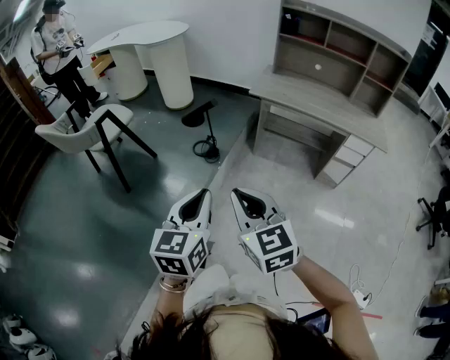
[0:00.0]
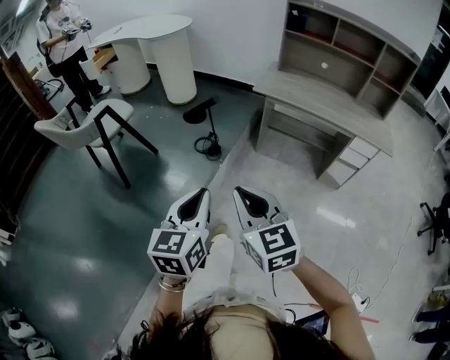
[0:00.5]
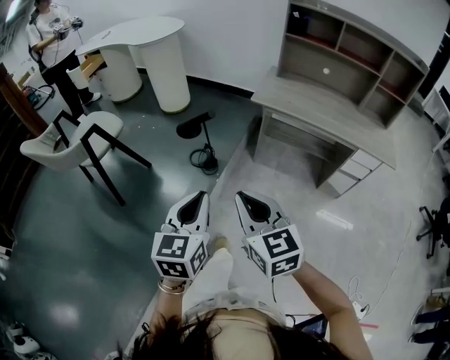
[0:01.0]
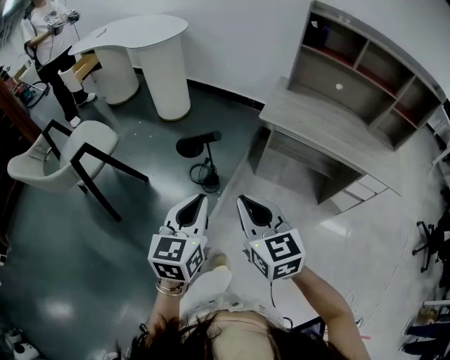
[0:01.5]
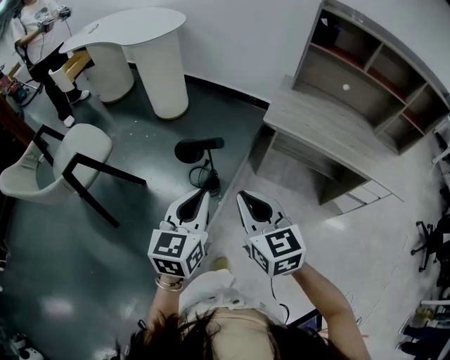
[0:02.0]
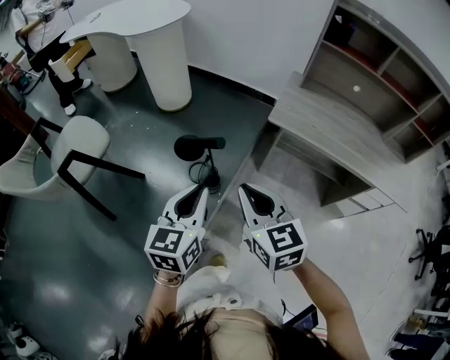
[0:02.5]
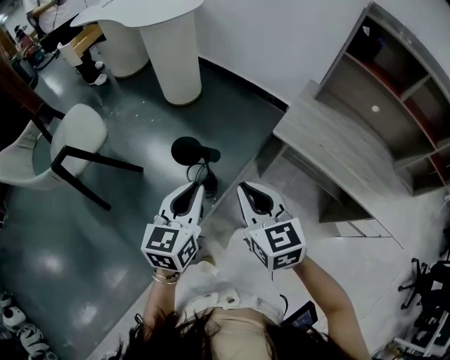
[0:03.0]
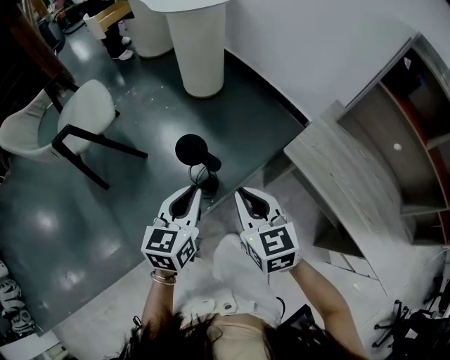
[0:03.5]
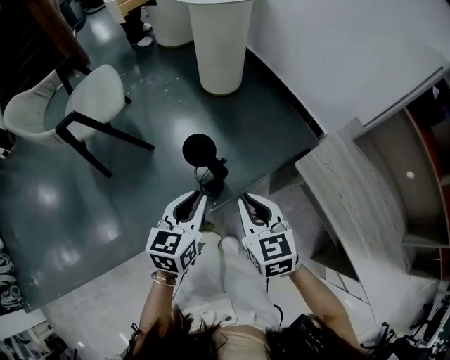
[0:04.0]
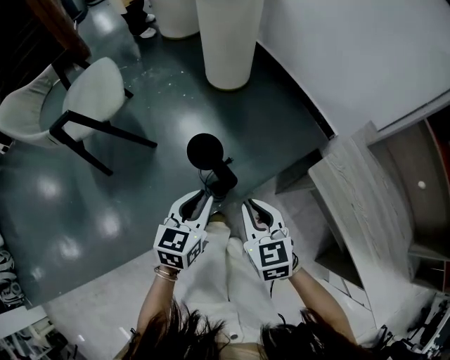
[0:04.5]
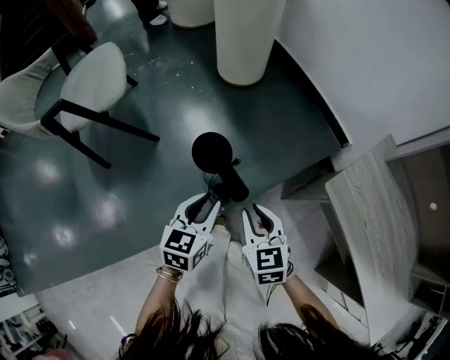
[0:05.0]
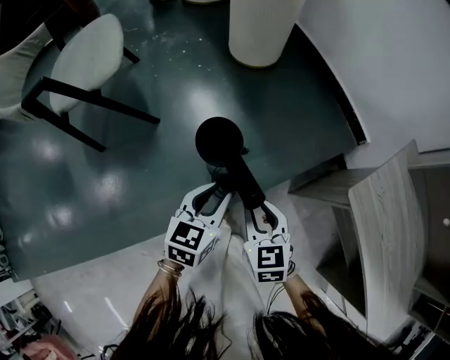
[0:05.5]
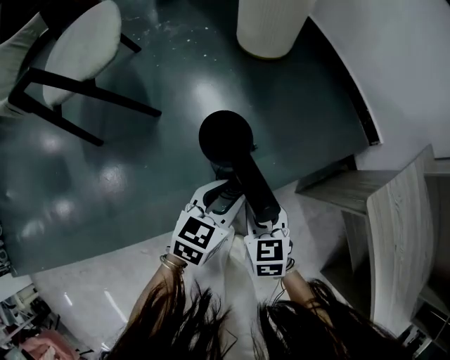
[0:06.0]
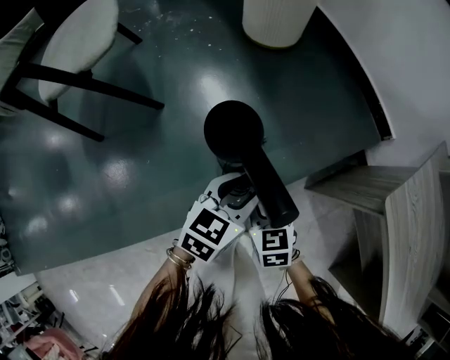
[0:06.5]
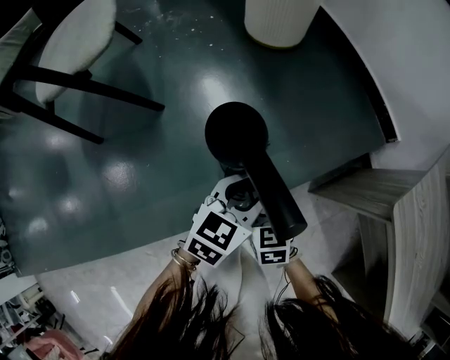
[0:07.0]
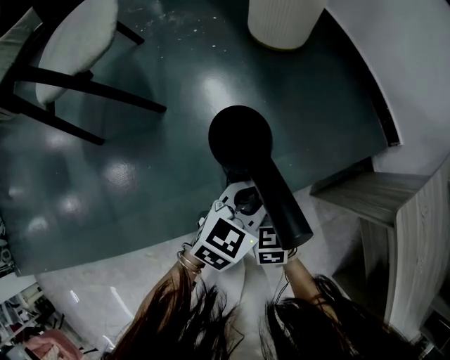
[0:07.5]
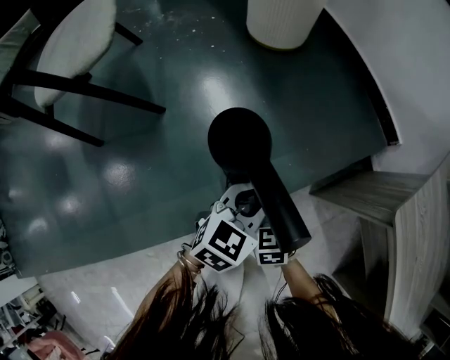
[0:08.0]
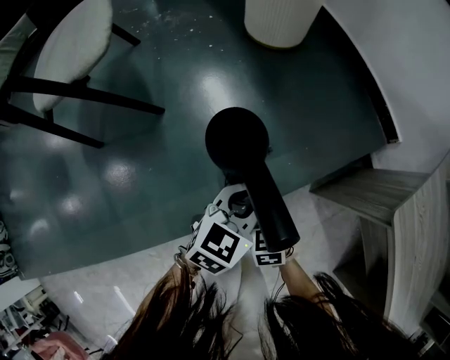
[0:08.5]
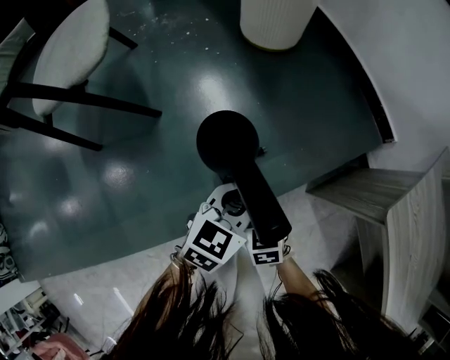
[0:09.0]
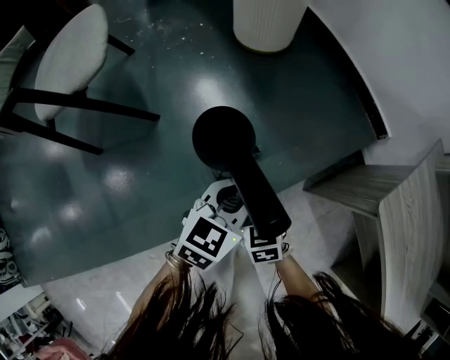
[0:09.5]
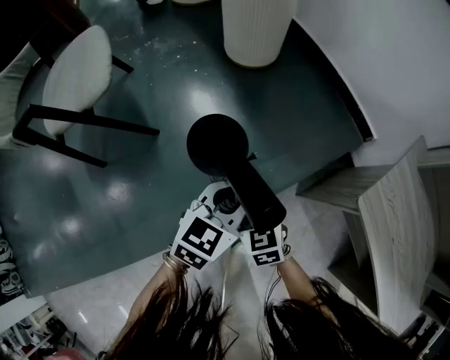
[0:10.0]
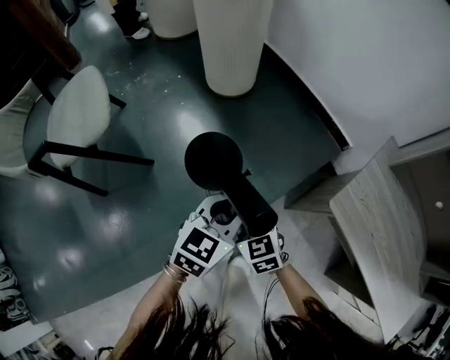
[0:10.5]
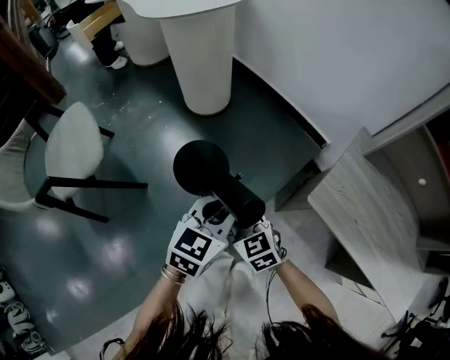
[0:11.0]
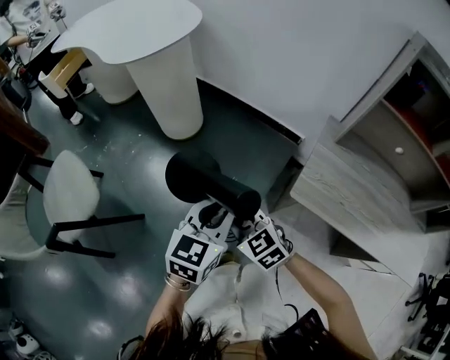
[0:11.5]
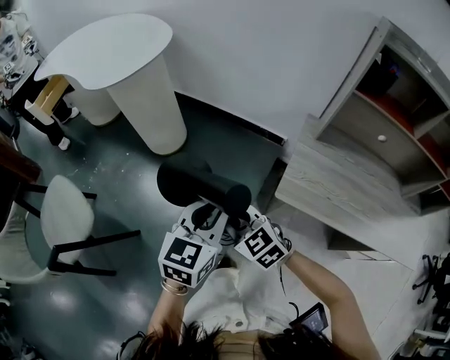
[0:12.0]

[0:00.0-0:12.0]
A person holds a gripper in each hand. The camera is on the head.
0.0 to 2.0 s: The grippers both shift forward by some 35 cm.
2.0 to 4.0 s: The left gripper shifts by approximately 20 cm, and turns by approximately 30 degrees, while the right gripper moves approximately 25 cm, and turns by roughly 30 degrees.
4.0 to 6.0 s: The left gripper travels downward and forward by roughly 25 cm, and opens its fingers, while the right gripper goes about 30 cm downward.
6.0 to 8.0 s: The right gripper travels downward by roughly 5 cm.
8.0 to 10.0 s: The grippers both shift upward by about 10 cm.
10.0 to 12.0 s: The two grippers go about 25 cm upward. The left gripper rotates roughly 20 degrees.

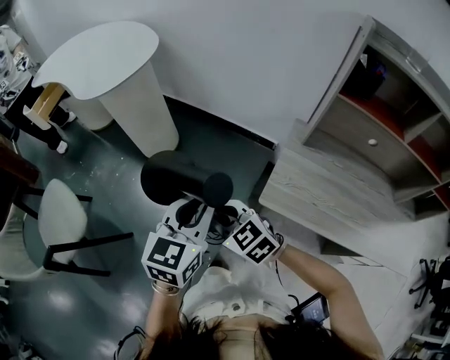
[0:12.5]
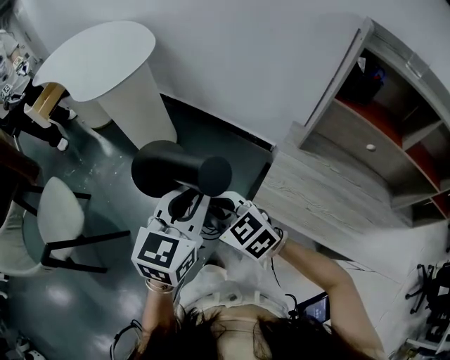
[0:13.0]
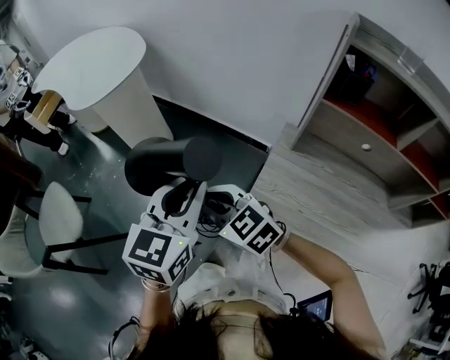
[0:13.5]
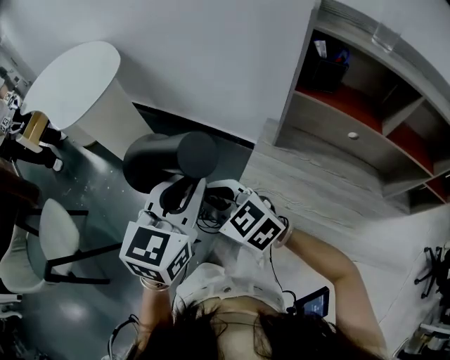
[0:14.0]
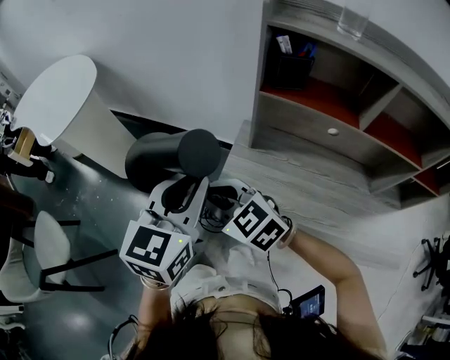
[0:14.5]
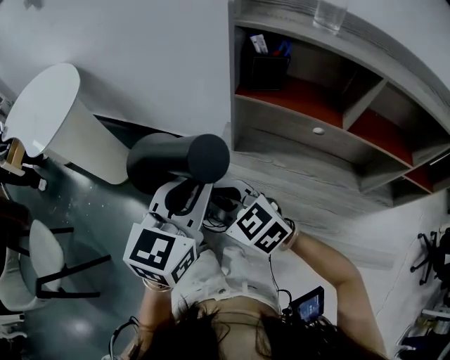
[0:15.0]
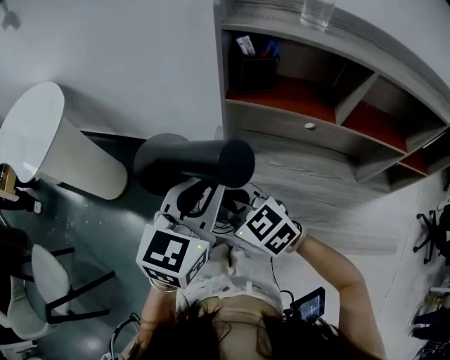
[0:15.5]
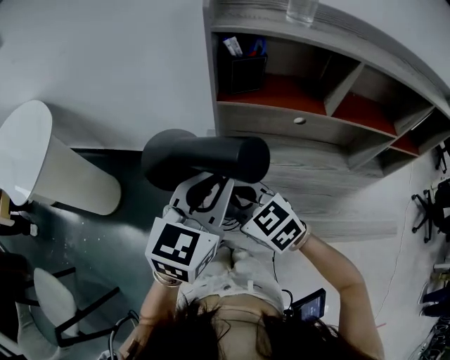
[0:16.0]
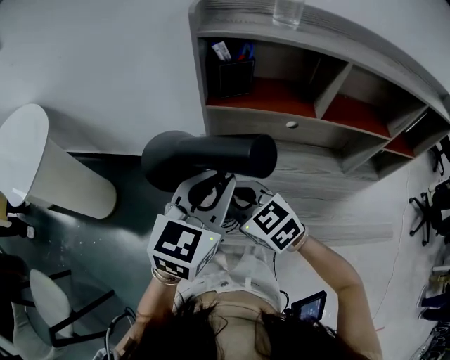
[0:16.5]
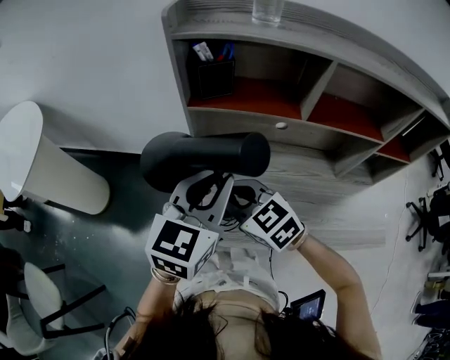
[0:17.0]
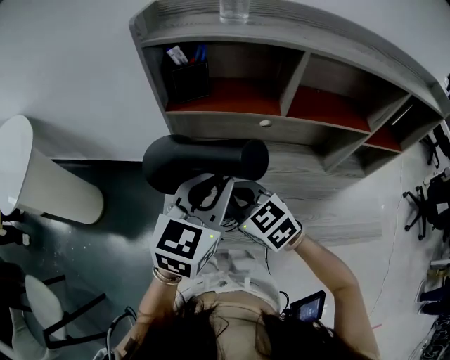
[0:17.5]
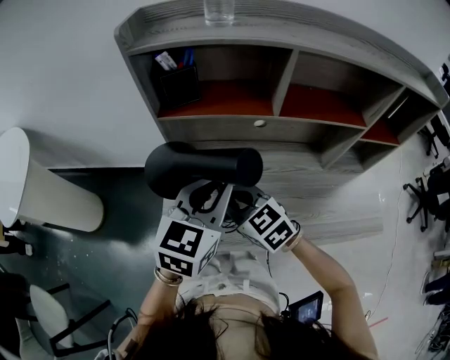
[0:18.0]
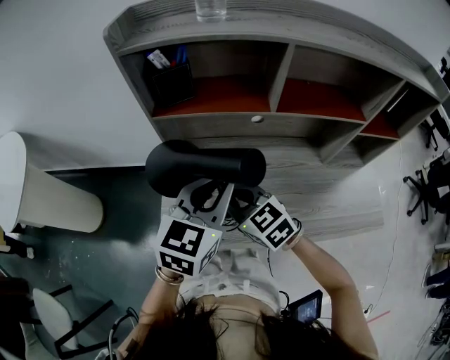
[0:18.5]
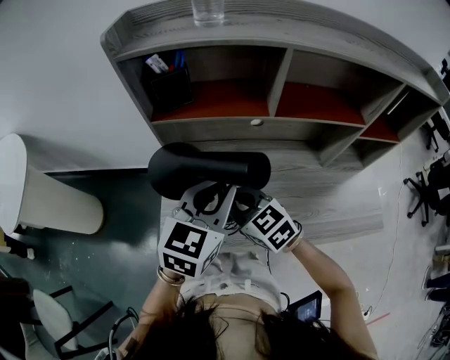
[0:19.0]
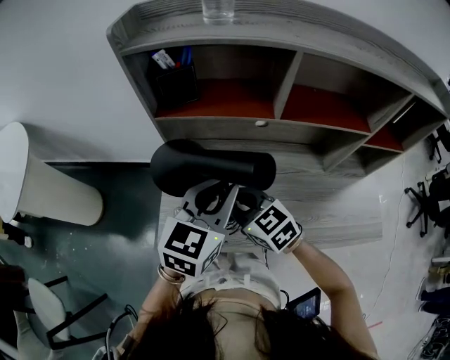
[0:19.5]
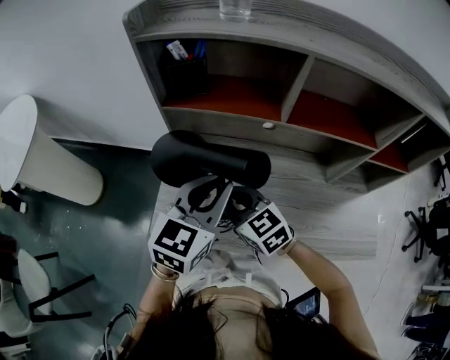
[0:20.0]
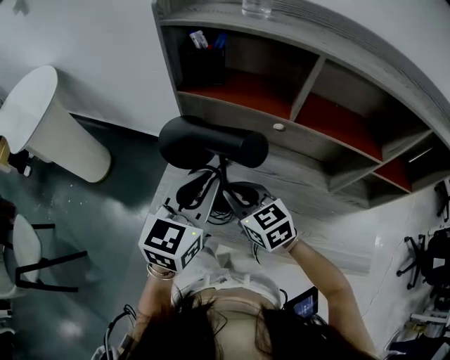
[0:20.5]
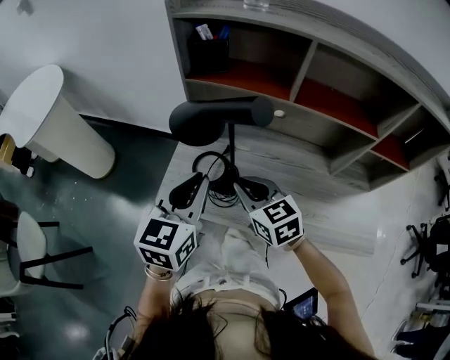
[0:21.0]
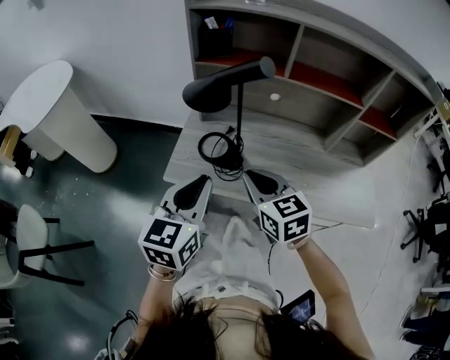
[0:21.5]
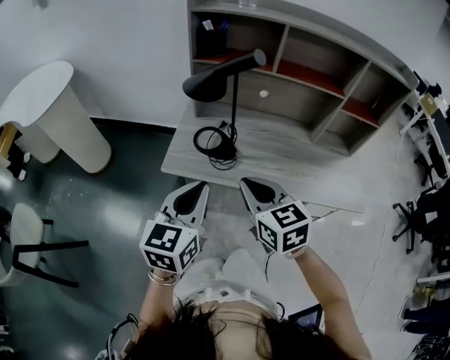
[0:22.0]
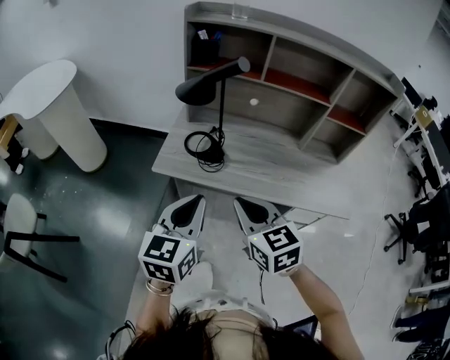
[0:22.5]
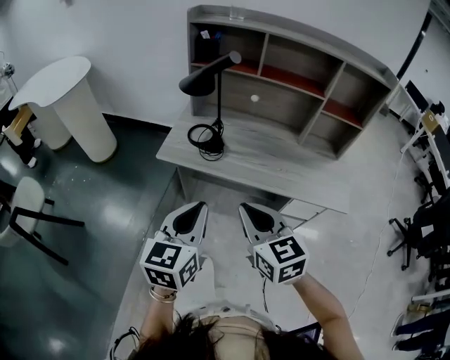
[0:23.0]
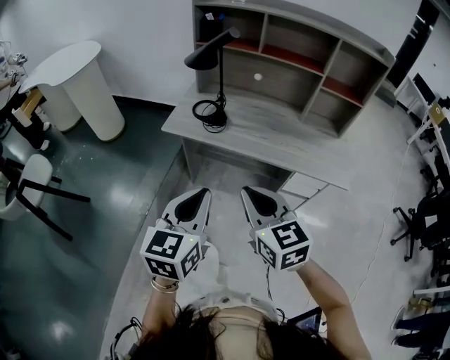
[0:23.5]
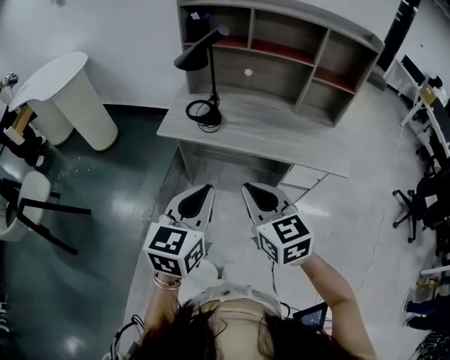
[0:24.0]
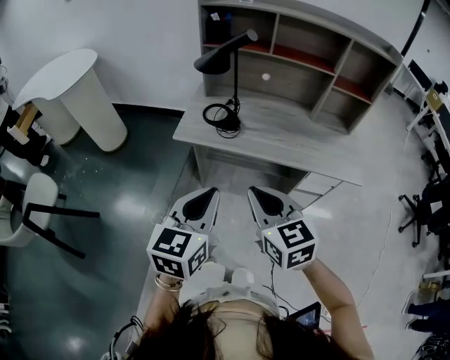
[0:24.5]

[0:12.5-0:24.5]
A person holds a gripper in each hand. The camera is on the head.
12.5 to 14.5 s: Both grippers travel together to the right and upward, approximately 25 cm.
14.5 to 16.5 s: Both grippers move to the right, some 15 cm. The left gripper turns by roughly 20 degrees. The right gripper swivels approximately 20 degrees.
16.5 to 18.5 s: The two grippers go some 10 cm to the right.
18.5 to 20.5 s: The left gripper turns by about 20 degrees.
20.5 to 22.5 s: The grippers both shift backward by about 30 cm.
22.5 to 24.5 s: Both grippers travel together backward, roughly 15 cm.

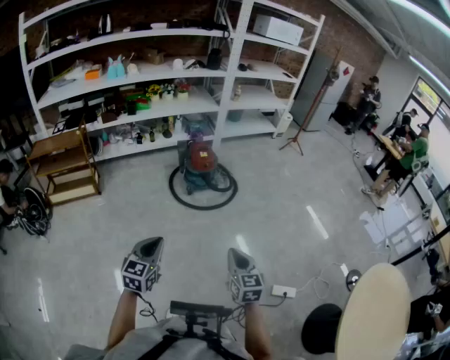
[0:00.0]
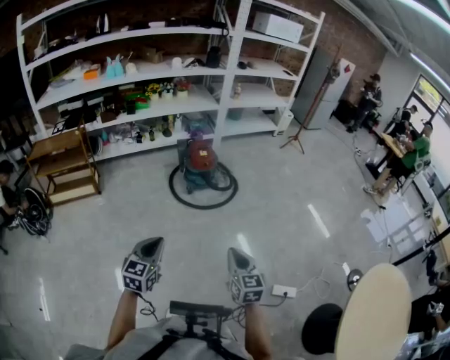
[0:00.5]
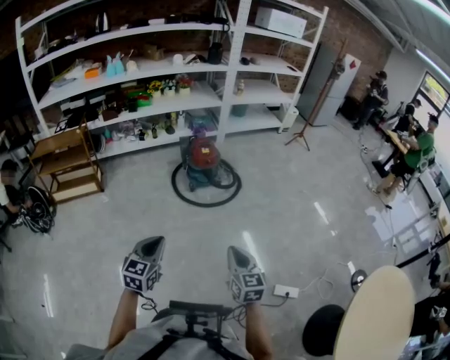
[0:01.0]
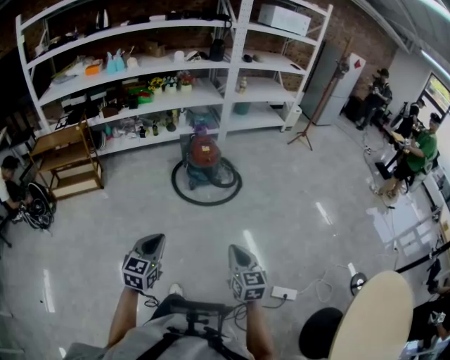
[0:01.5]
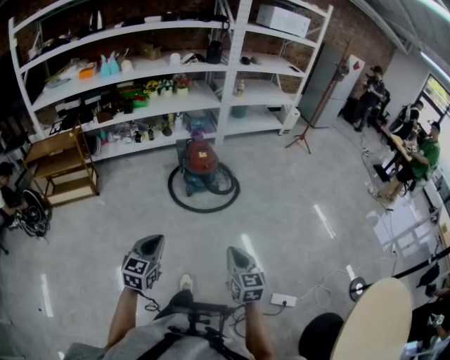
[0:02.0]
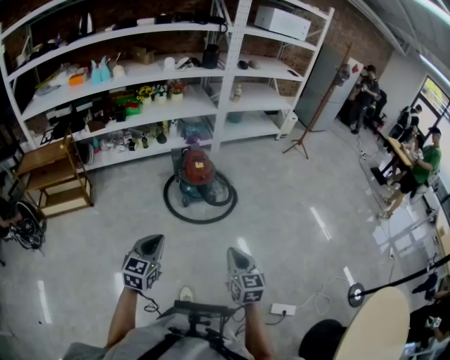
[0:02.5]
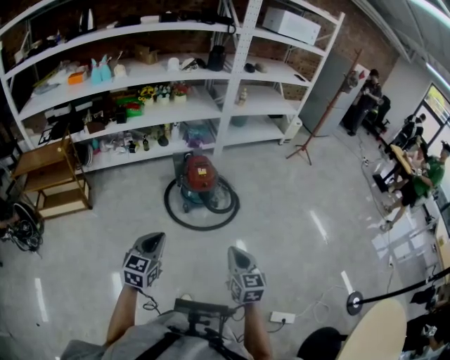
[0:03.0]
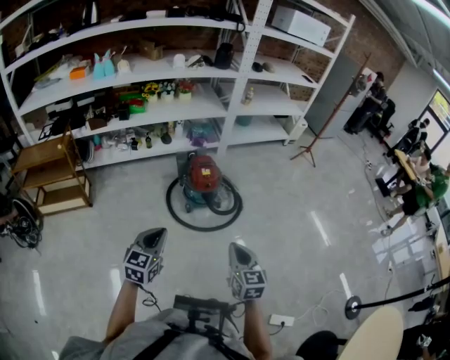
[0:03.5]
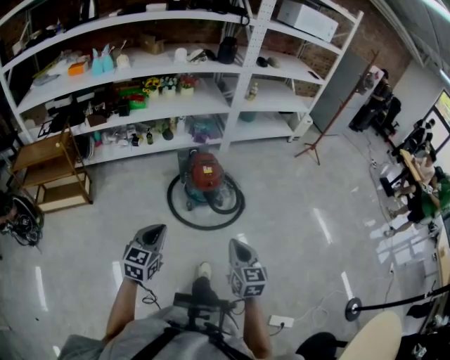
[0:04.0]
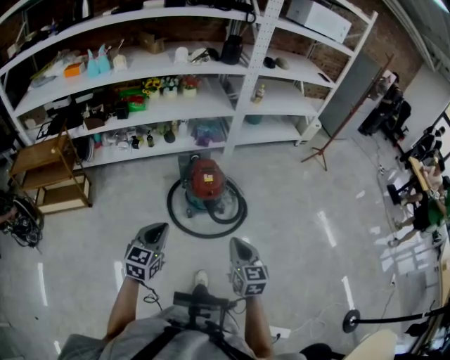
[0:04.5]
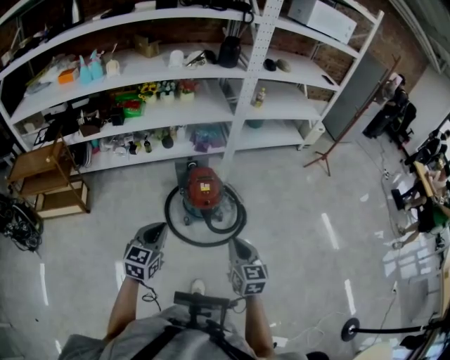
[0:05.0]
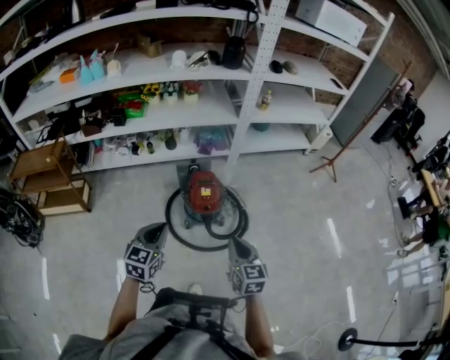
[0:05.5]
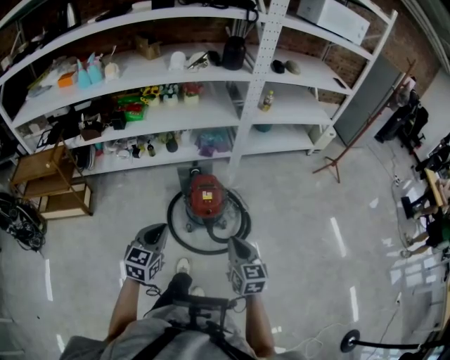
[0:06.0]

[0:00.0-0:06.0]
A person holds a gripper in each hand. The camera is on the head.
0.0 to 2.0 s: The left gripper is displaced forward and to the right by some 10 cm, while the right gripper is displaced forward by approximately 10 cm.
2.0 to 4.0 s: Both grippers travel together forward, roughly 30 cm.
4.0 to 6.0 s: The two grippers go some 30 cm forward.
